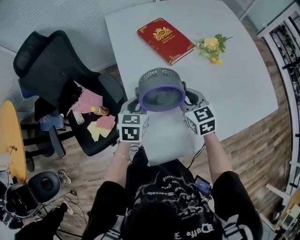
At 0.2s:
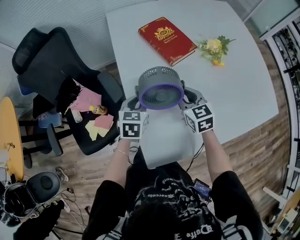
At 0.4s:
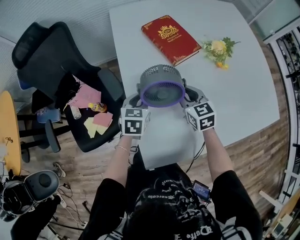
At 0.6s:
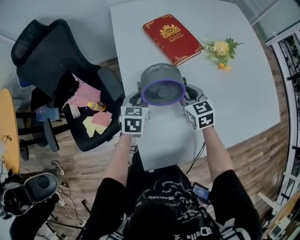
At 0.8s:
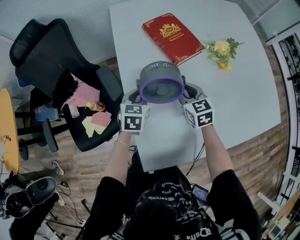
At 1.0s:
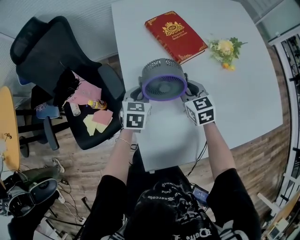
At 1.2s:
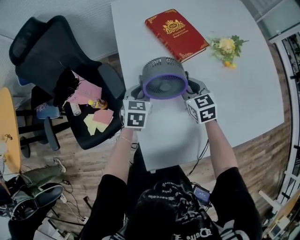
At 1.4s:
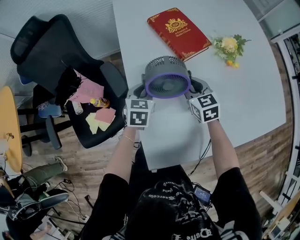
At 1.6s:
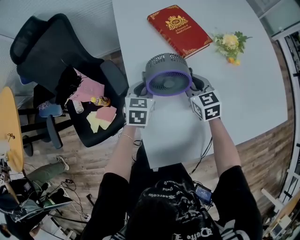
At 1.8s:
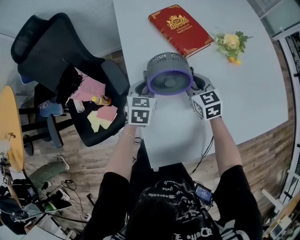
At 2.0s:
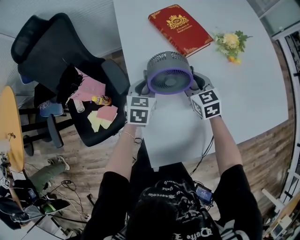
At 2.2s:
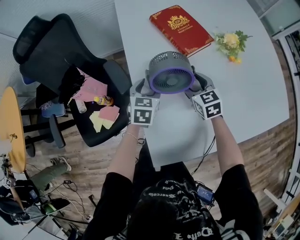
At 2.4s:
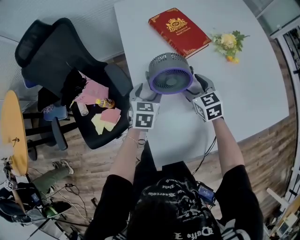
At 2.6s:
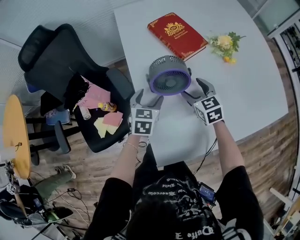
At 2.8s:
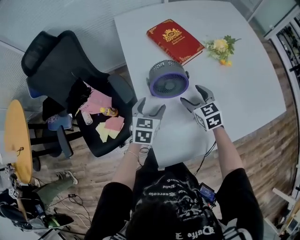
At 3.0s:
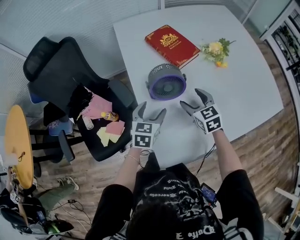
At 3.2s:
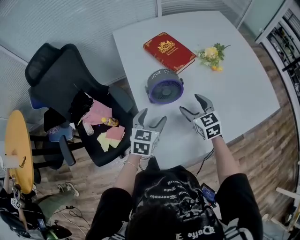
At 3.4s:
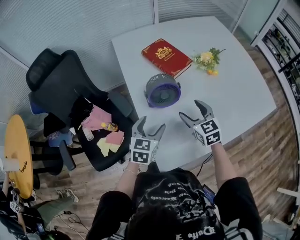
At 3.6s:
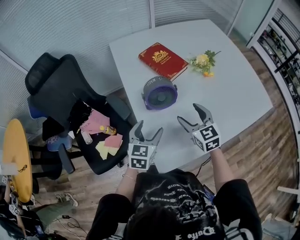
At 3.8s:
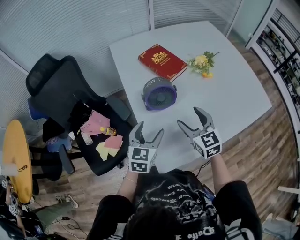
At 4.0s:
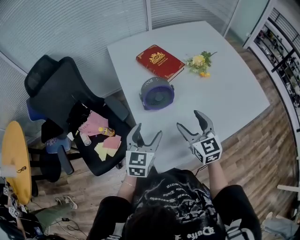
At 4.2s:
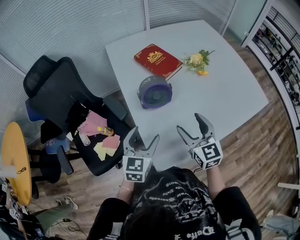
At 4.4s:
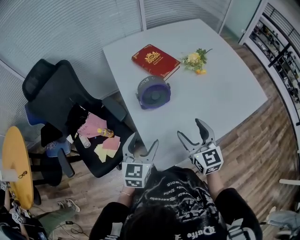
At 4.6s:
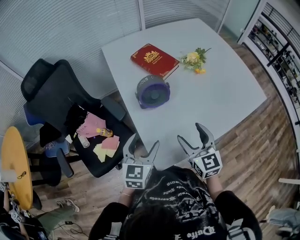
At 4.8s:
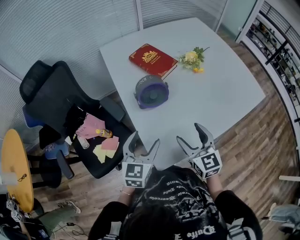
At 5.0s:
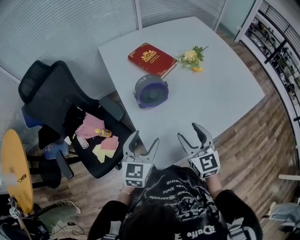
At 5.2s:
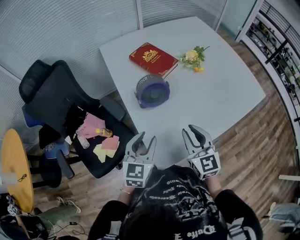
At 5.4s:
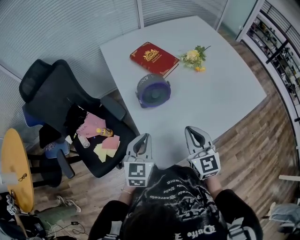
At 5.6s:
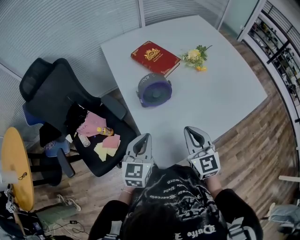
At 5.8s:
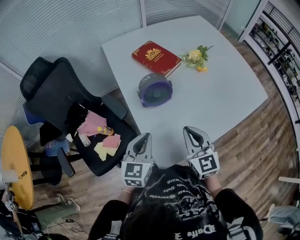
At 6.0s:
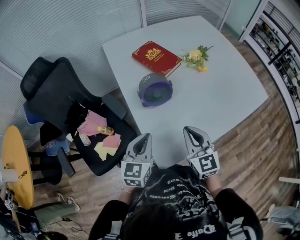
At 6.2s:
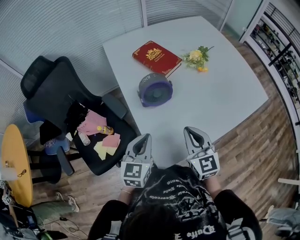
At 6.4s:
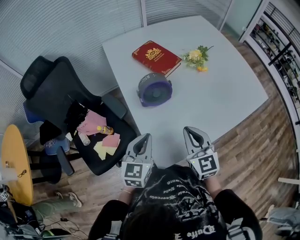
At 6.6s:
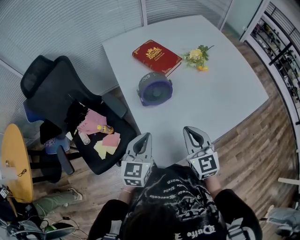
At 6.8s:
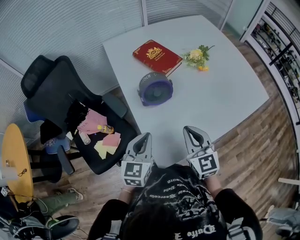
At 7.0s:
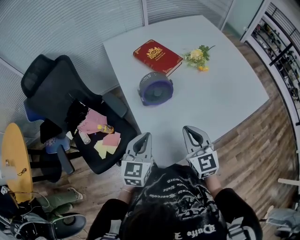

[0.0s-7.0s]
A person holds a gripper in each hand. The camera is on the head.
0.0s to 1.4s: The two grippers go some 10 cm downward and forward.
1.4s to 2.8s: Both grippers travel together backward, some 5 cm. The right gripper opens. Meanwhile the left gripper opens up.
2.8s to 4.2s: The two grippers go about 20 cm backward and upward. The right gripper turns by about 20 degrees.
4.2s to 5.6s: The right gripper closes its fingers. Meanwhile the left gripper closes up.
5.6s to 7.0s: Both grippers stay about where they are.

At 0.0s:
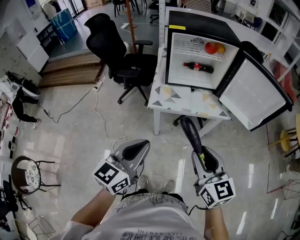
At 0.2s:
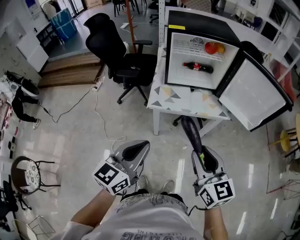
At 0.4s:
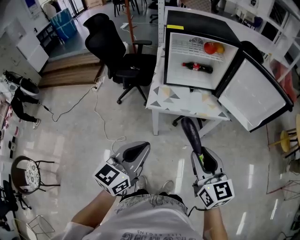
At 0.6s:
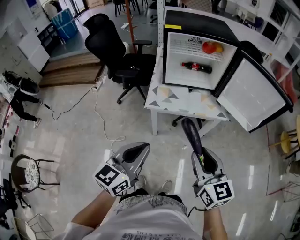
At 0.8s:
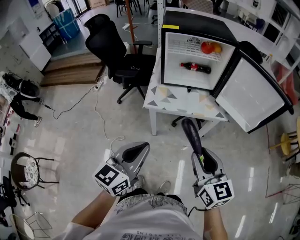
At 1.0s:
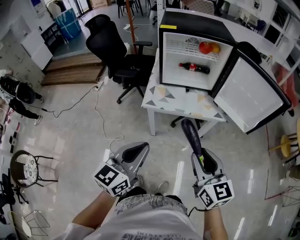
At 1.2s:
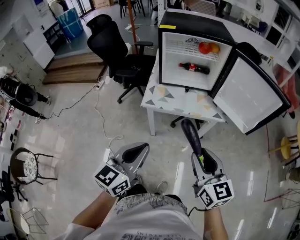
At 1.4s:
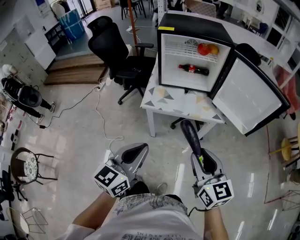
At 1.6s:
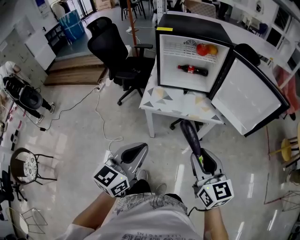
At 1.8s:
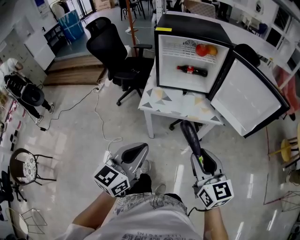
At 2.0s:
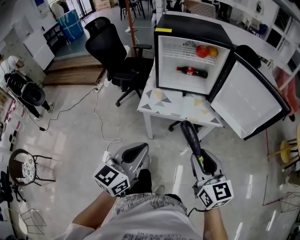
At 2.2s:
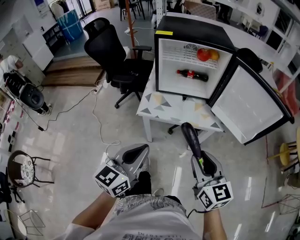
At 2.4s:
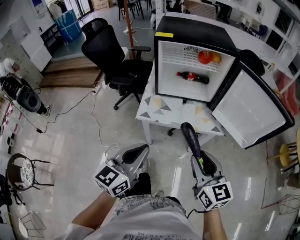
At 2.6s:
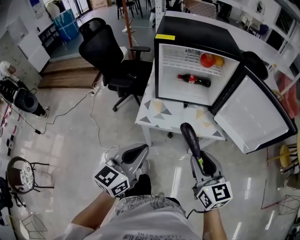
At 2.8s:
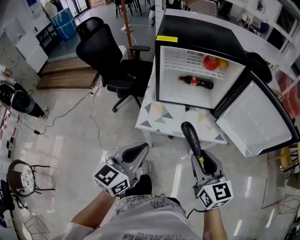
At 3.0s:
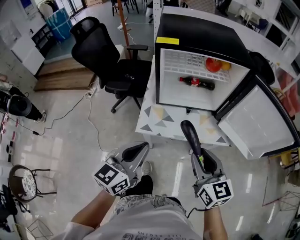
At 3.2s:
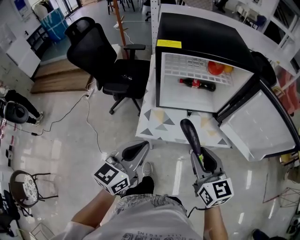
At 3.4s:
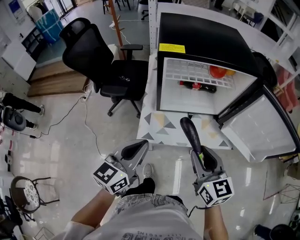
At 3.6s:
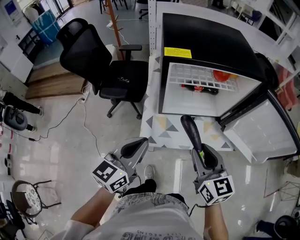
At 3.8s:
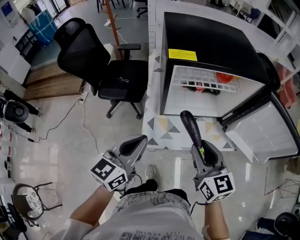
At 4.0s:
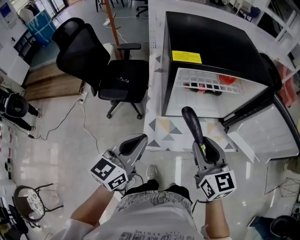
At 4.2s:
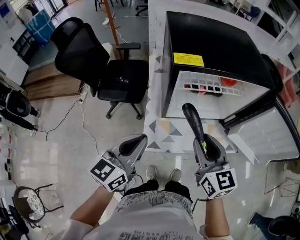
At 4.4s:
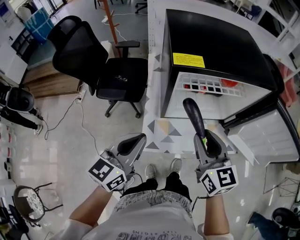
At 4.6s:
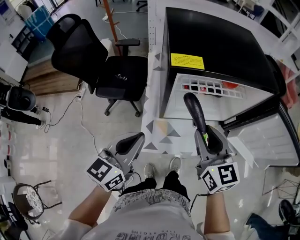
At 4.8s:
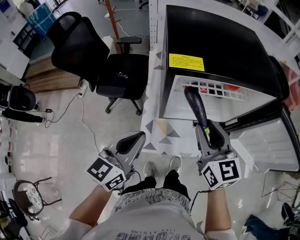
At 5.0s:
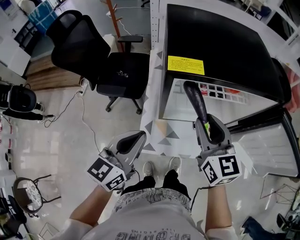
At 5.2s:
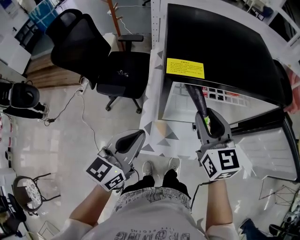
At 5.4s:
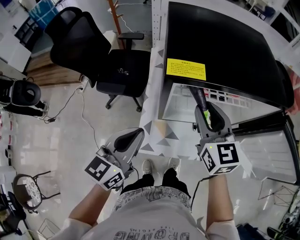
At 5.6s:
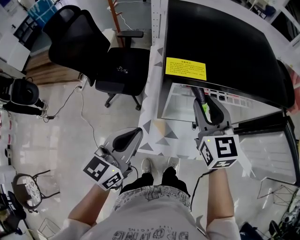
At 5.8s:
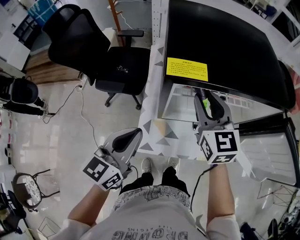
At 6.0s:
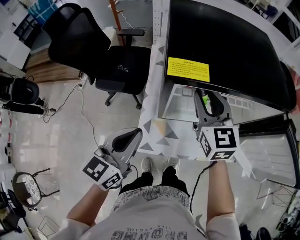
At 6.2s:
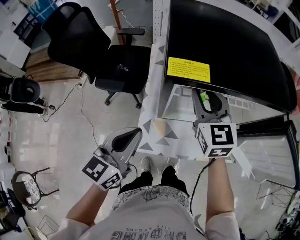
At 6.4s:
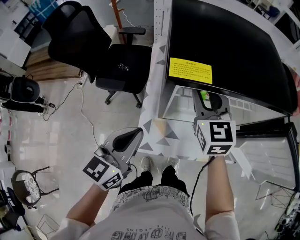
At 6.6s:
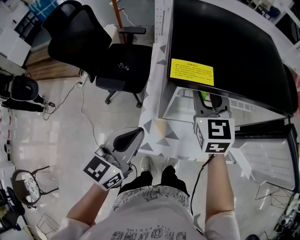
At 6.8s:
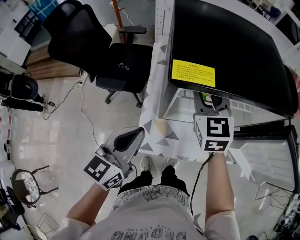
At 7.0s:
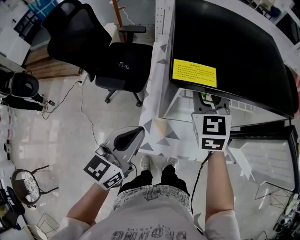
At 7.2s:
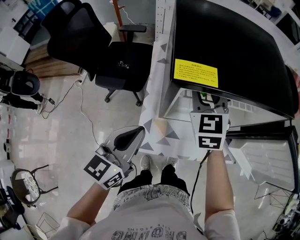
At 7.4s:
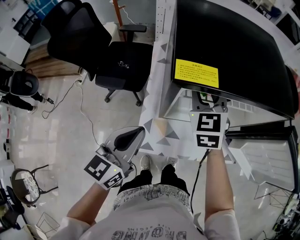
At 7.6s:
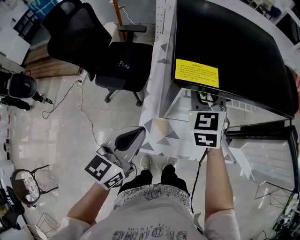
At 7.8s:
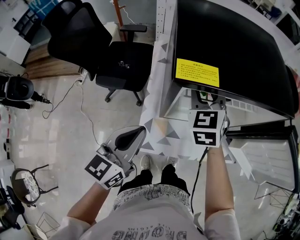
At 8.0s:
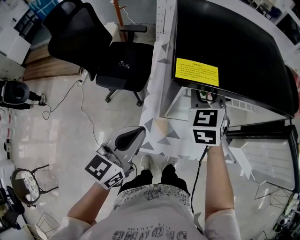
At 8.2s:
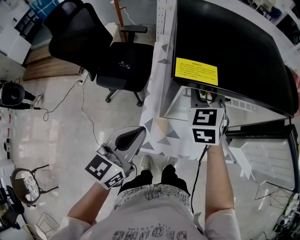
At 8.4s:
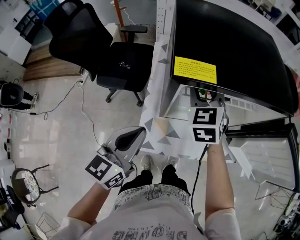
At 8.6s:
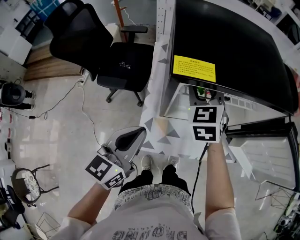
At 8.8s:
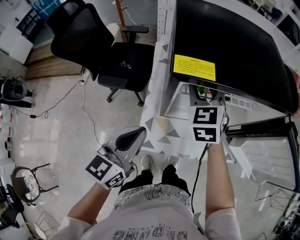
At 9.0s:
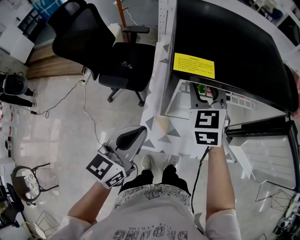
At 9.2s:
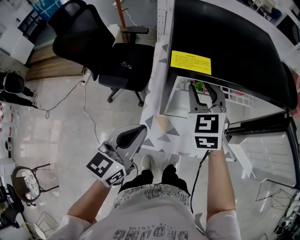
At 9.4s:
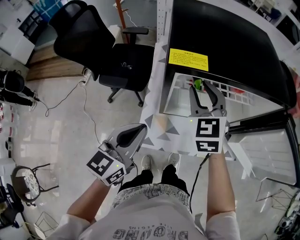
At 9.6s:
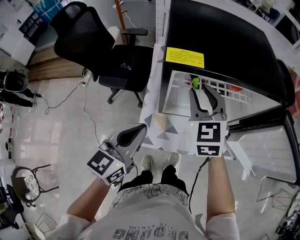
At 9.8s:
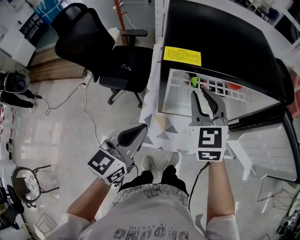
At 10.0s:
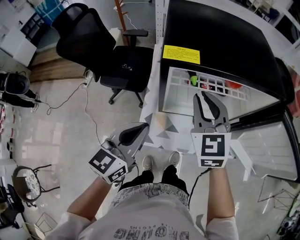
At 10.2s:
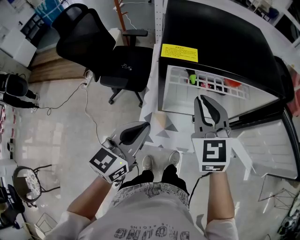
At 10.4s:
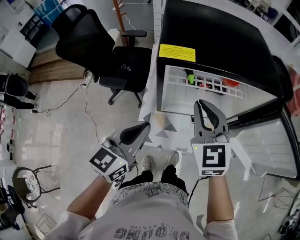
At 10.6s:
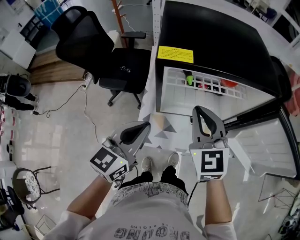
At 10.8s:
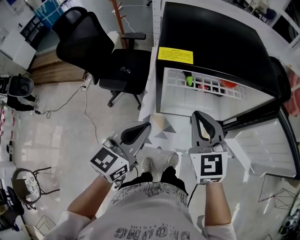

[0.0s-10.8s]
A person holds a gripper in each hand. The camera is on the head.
0.0s to 1.6s: The two grippers go about 10 cm to the right.
1.6s to 3.0s: The grippers both shift forward by about 20 cm.
3.0s to 4.6s: The grippers both shift forward and to the left by roughly 20 cm.
4.6s to 6.2s: The right gripper shifts roughly 15 cm forward.
6.2s to 7.8s: The right gripper turns by approximately 20 degrees.
7.8s to 9.2s: The grippers stay close to where they were, moving slightly.
9.2s to 10.8s: The right gripper moves backward, about 10 cm, and closes.

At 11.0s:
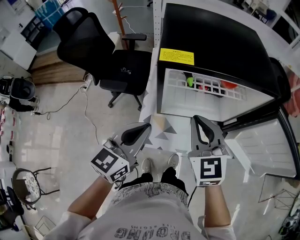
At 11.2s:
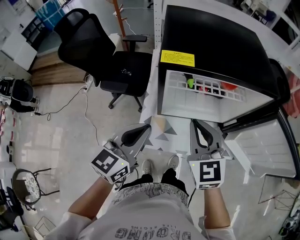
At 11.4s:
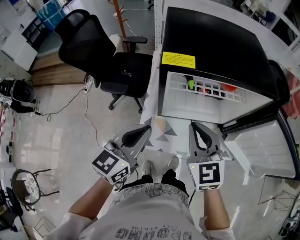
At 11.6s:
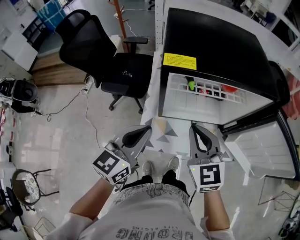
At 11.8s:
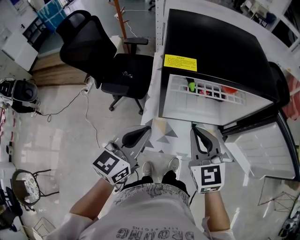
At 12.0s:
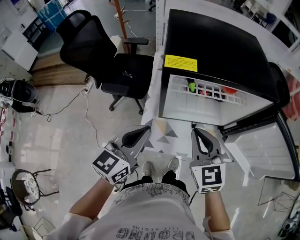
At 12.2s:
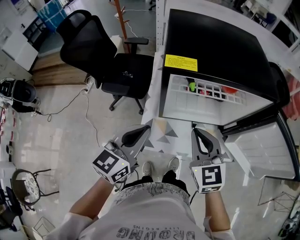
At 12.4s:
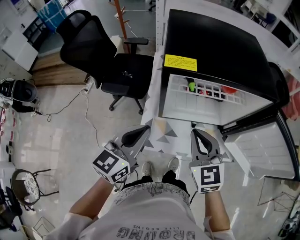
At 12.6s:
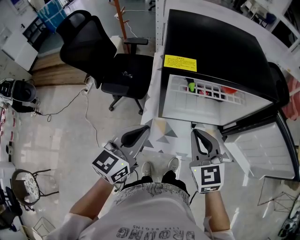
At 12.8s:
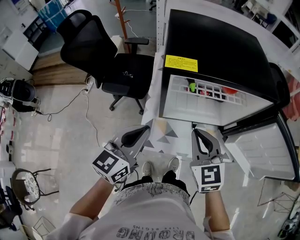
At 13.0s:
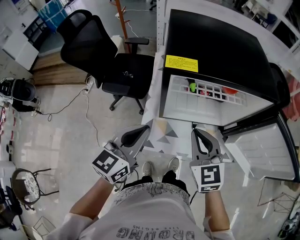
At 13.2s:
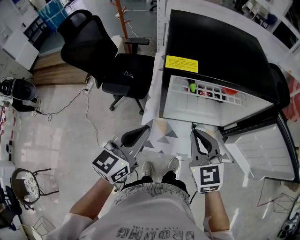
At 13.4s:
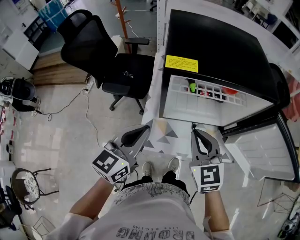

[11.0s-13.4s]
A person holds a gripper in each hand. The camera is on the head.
11.0s to 12.2s: There are only small adjustments of the grippers.
12.2s to 13.4s: The two grippers keep their place.

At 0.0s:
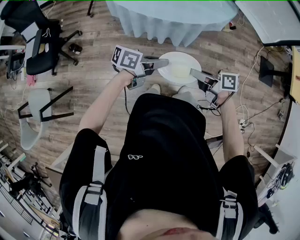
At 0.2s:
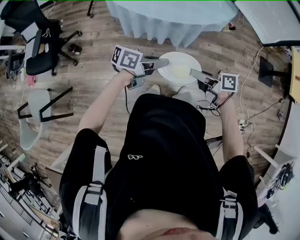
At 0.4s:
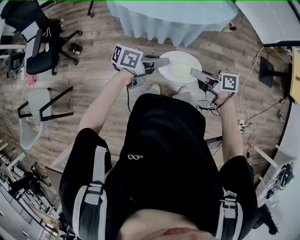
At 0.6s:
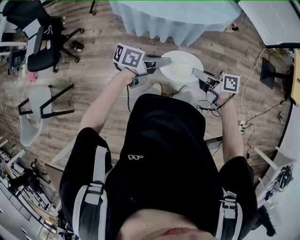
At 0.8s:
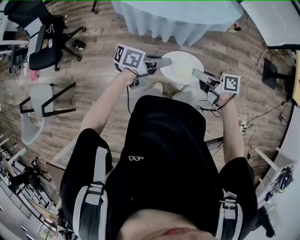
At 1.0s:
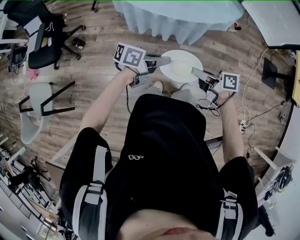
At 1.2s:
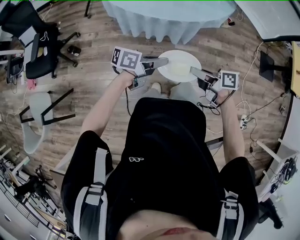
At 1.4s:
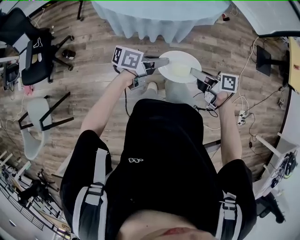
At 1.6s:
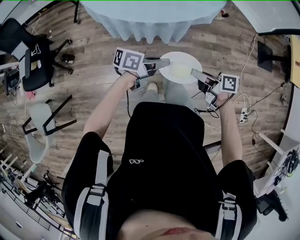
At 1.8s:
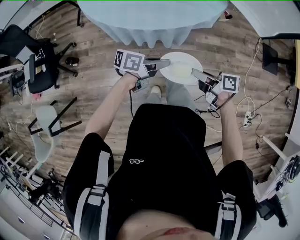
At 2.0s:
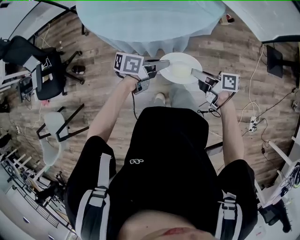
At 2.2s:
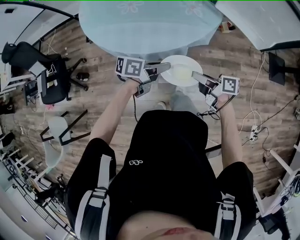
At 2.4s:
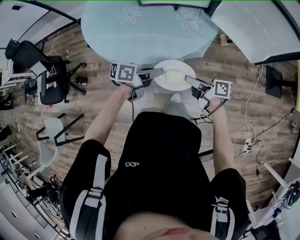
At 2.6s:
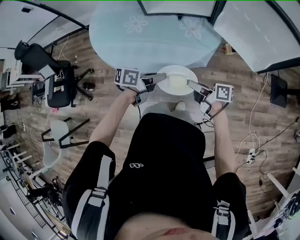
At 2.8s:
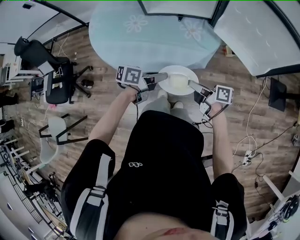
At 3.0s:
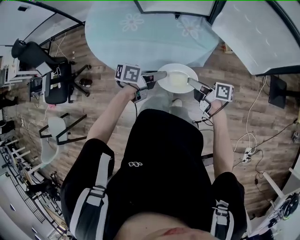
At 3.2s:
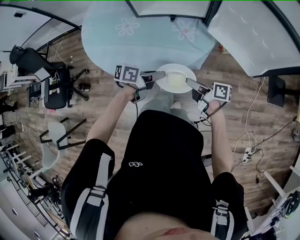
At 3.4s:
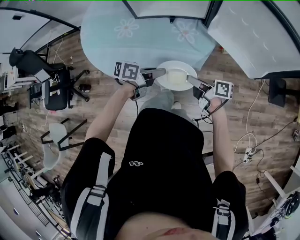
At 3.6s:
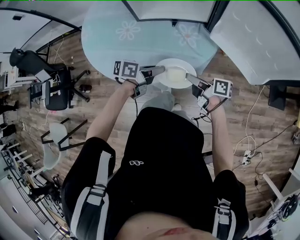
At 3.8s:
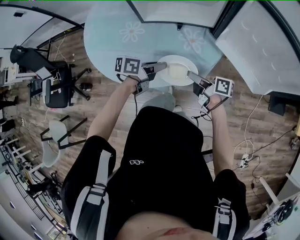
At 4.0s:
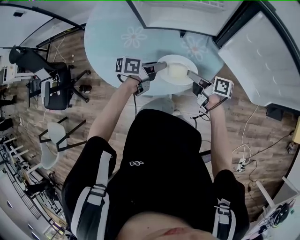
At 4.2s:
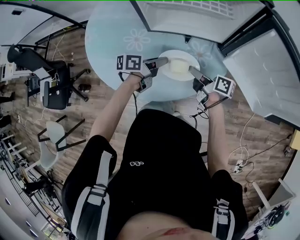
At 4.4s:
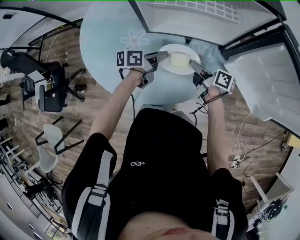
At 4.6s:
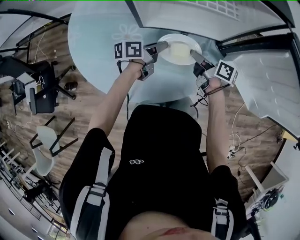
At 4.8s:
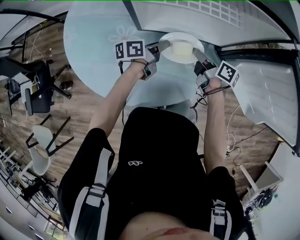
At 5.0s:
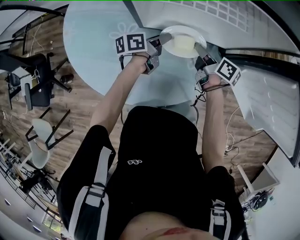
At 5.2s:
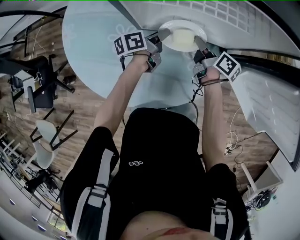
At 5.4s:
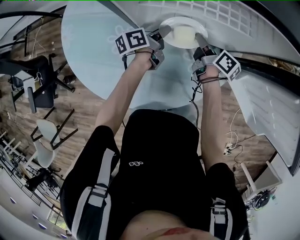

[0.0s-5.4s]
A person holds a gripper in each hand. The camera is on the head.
0.0s to 1.4s: The grippers make only small movements.
1.4s to 2.8s: The right gripper shifts by about 25 cm. Meanwhile the left gripper changes place by roughly 25 cm.
2.8s to 4.0s: The right gripper moves approximately 20 cm. Meanwhile the left gripper ends up approximately 20 cm from where it was.
4.0s to 5.4s: Both grippers move forward, approximately 25 cm. The right gripper swivels roughly 30 degrees. Meanwhile the left gripper rotates roughly 30 degrees.
